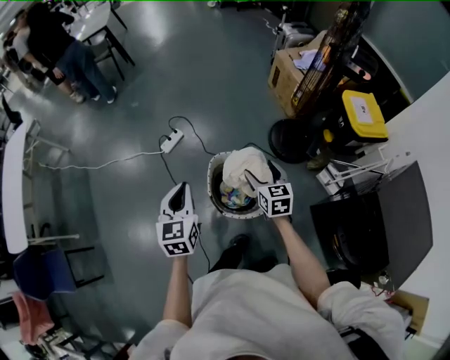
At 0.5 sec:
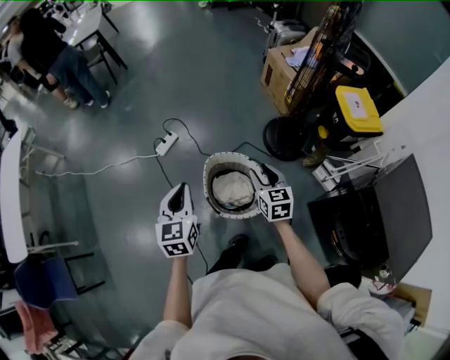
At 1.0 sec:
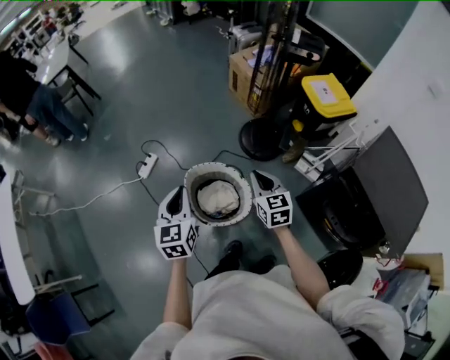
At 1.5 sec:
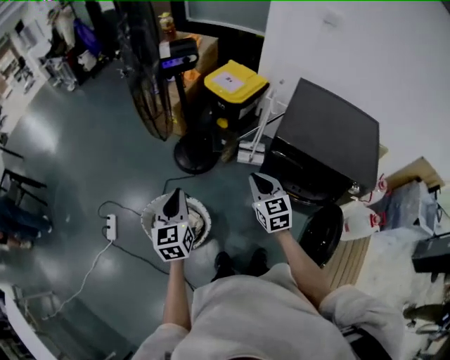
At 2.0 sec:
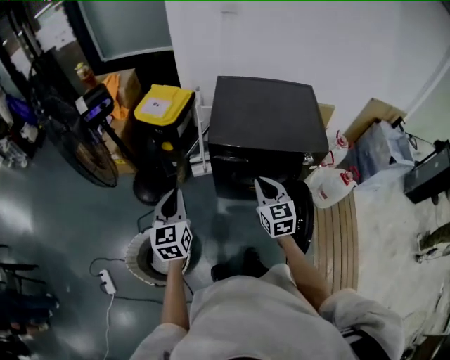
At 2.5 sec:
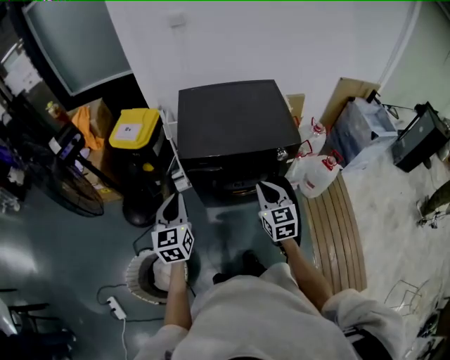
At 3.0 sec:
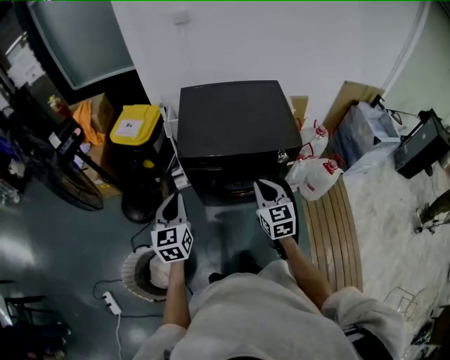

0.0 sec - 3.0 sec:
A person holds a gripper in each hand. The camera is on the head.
0.0 sec - 1.5 sec: The left gripper moves approximately 35 cm, and rotates roughly 40 degrees; the right gripper shifts by roughly 35 cm, turns by approximately 40 degrees, and closes.
1.5 sec - 3.0 sec: The right gripper changes place by some 35 cm, and changes its angle by some 30 degrees, while the left gripper moves some 30 cm, and turns by roughly 30 degrees.

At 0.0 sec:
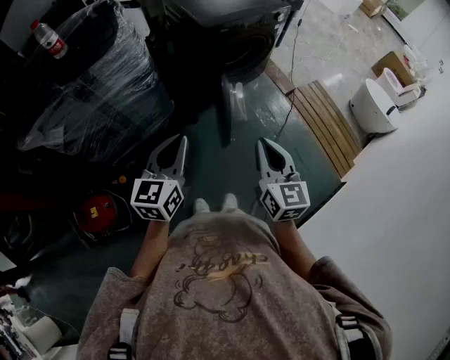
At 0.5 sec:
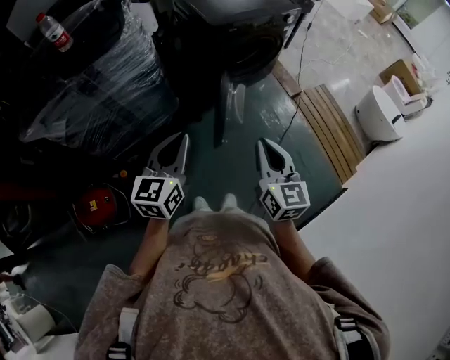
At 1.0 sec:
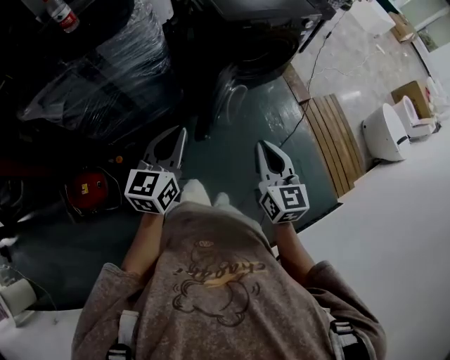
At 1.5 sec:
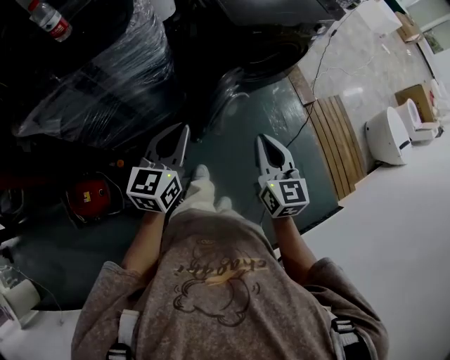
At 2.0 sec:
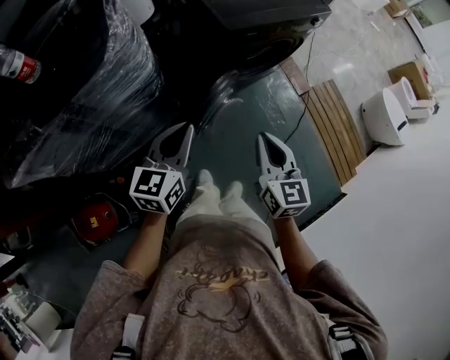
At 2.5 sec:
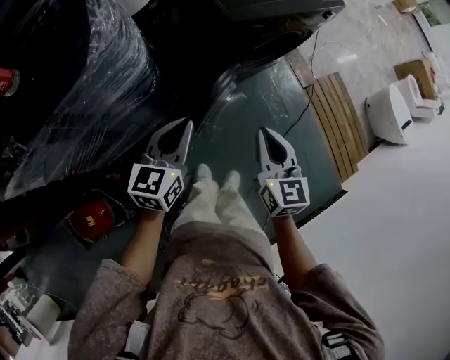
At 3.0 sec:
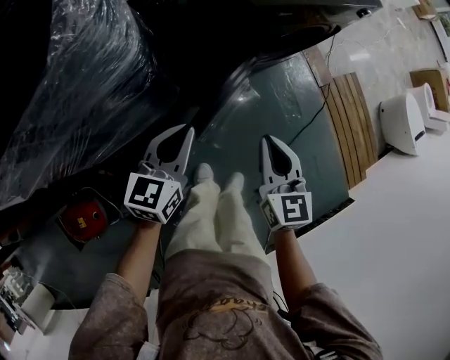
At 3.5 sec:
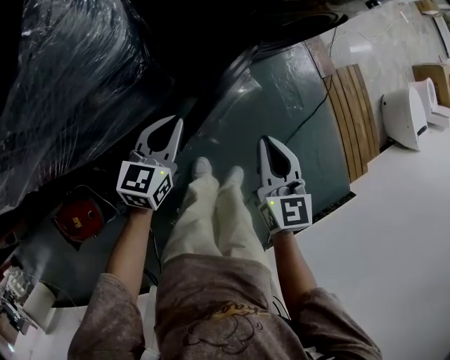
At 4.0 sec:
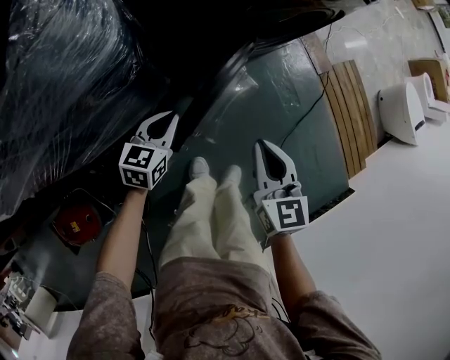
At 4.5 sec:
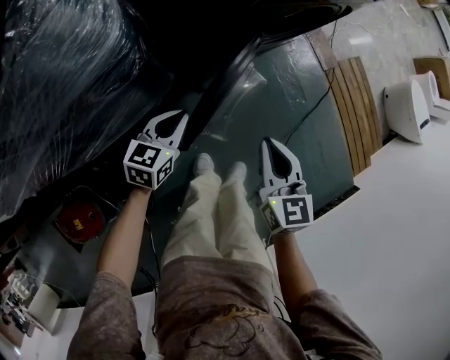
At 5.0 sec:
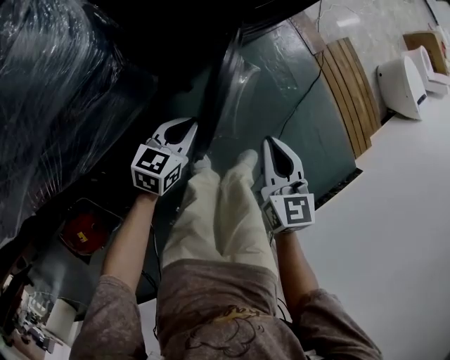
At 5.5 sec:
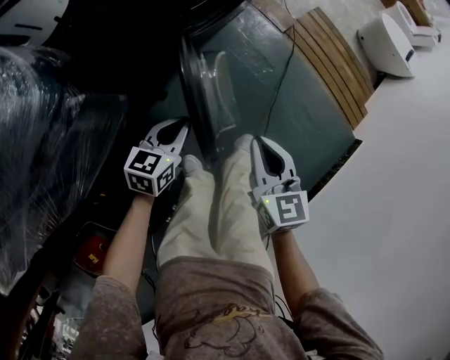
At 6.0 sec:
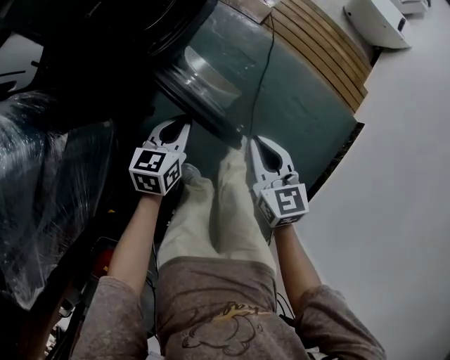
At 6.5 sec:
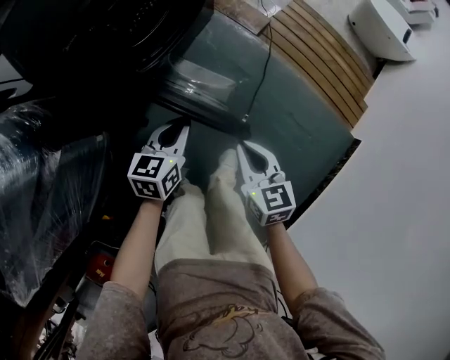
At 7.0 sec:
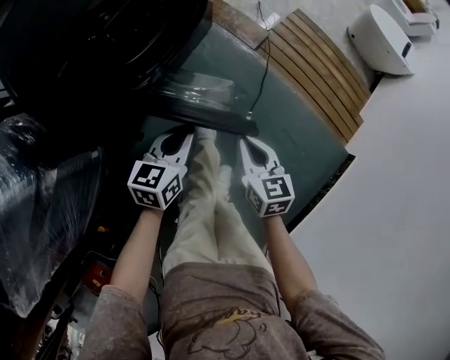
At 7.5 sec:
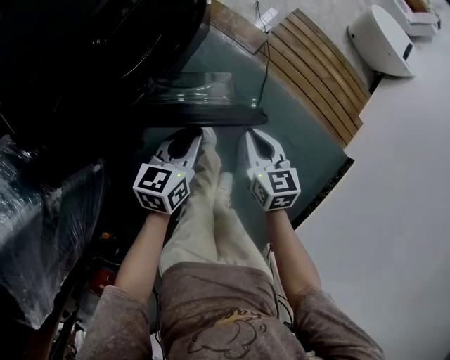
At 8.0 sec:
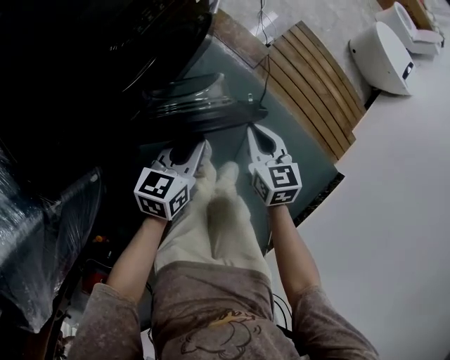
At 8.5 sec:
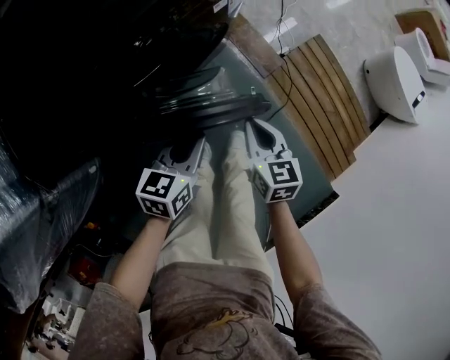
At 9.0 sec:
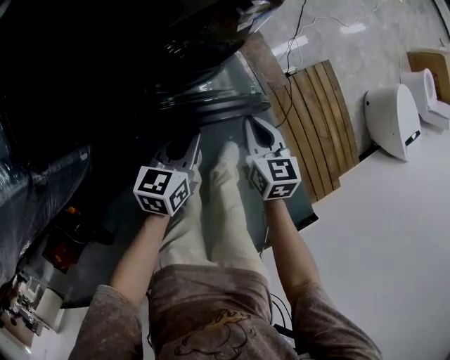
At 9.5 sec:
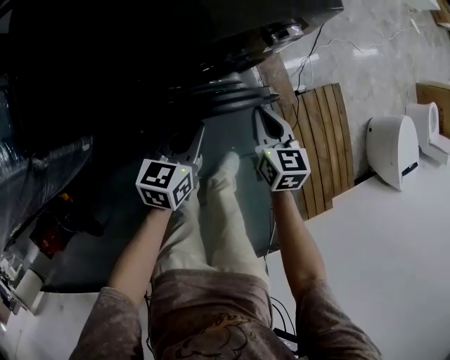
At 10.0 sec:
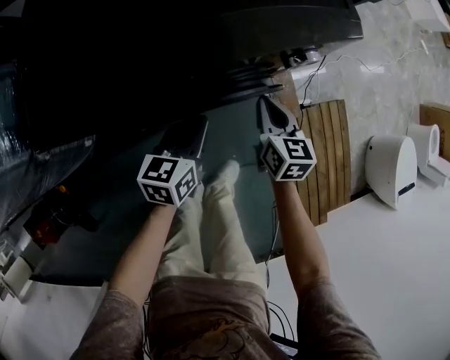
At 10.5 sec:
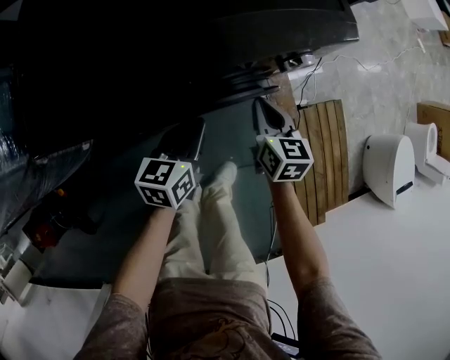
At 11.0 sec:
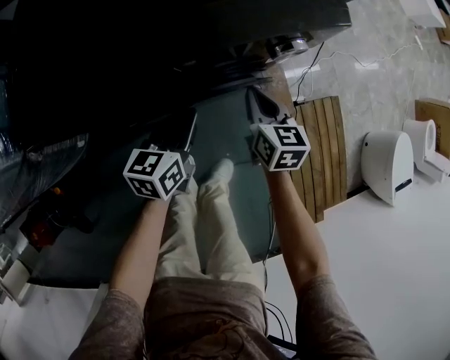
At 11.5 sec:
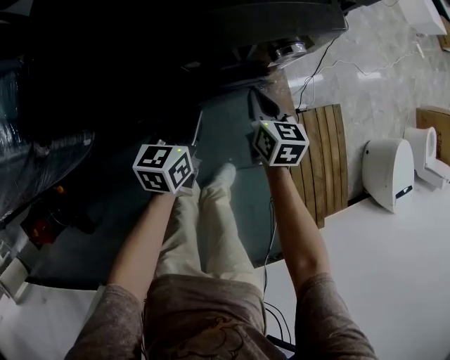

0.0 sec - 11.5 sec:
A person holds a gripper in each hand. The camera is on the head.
0.0 sec - 2.0 sec: Both grippers move forward, approximately 20 cm.
2.0 sec - 4.0 sec: The left gripper shifts roughly 30 cm downward. The right gripper shifts about 20 cm downward.
4.0 sec - 6.0 sec: Both grippers move to the right, about 25 cm. The right gripper rotates about 30 degrees. The left gripper swivels about 20 degrees.
6.0 sec - 7.5 sec: The right gripper shifts roughly 20 cm forward. Meanwhile the left gripper shifts about 20 cm forward and to the right.
7.5 sec - 9.5 sec: The left gripper moves some 20 cm, and rotates roughly 30 degrees; the right gripper shifts by about 30 cm, and swivels some 30 degrees.
9.5 sec - 11.5 sec: Both grippers travel together forward, some 5 cm.

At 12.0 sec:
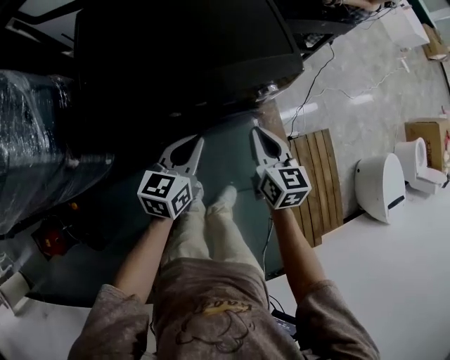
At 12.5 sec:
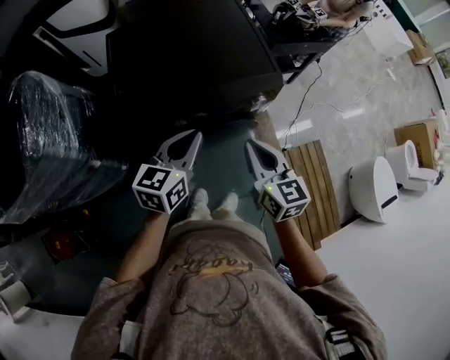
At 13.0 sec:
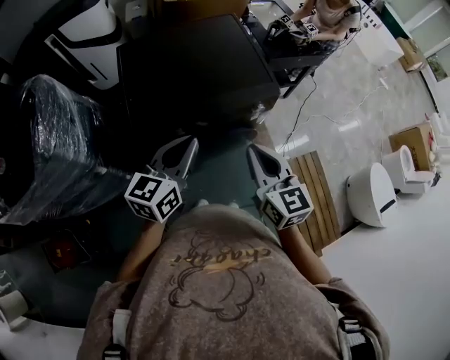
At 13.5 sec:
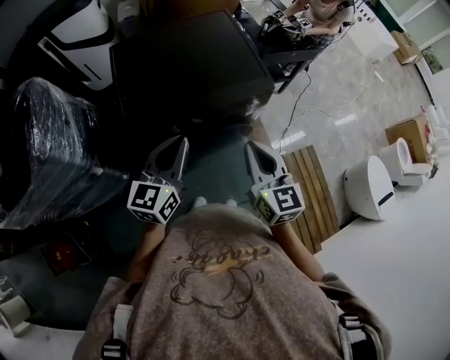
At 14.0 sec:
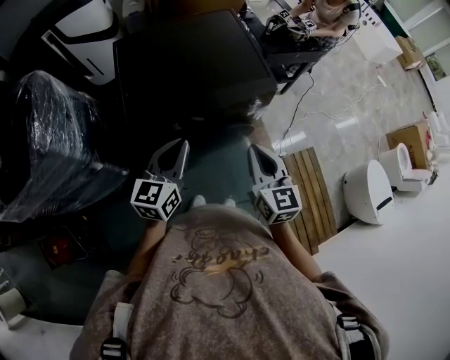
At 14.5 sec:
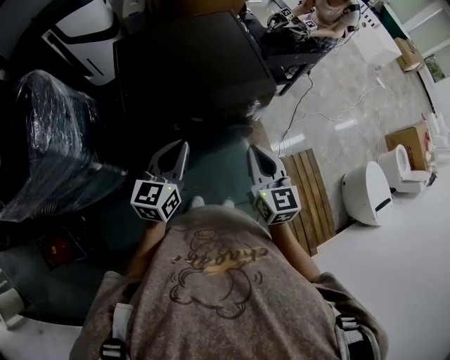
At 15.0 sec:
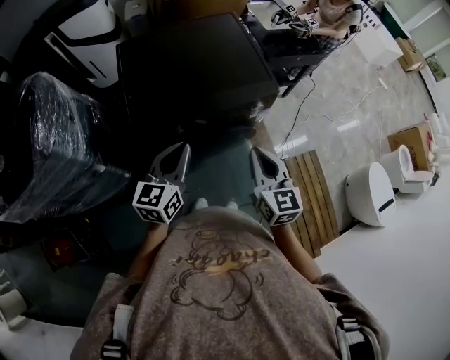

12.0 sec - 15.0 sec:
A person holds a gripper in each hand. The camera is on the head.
12.0 sec - 13.5 sec: The left gripper is displaced upward by some 20 cm, and changes its angle by roughly 20 degrees. Meanwhile the right gripper is displaced upward and backward by approximately 25 cm.
13.5 sec - 15.0 sec: The grippers move only a little.

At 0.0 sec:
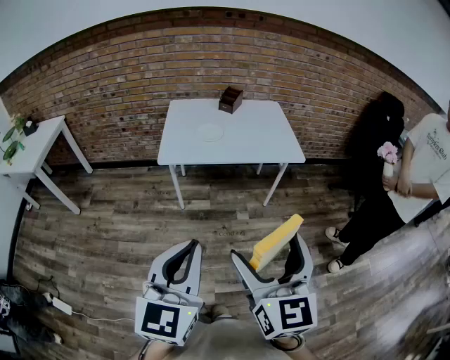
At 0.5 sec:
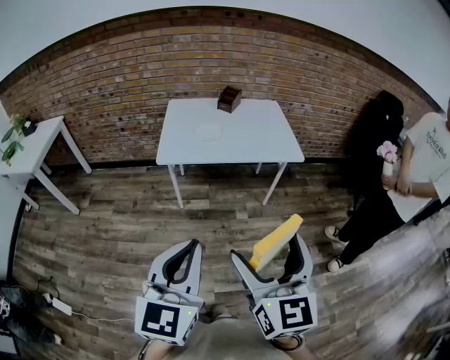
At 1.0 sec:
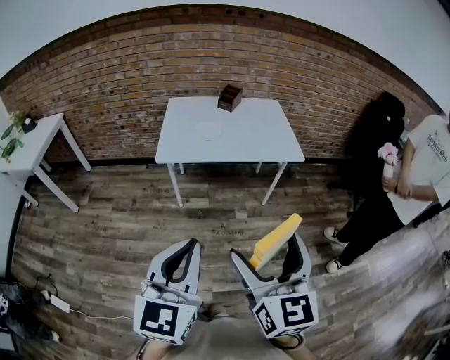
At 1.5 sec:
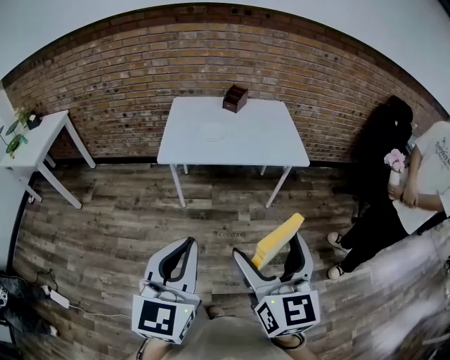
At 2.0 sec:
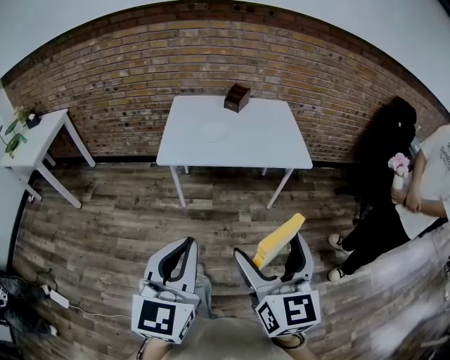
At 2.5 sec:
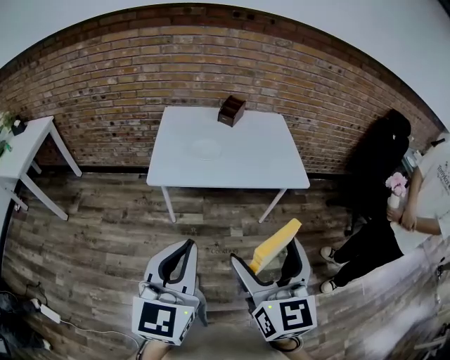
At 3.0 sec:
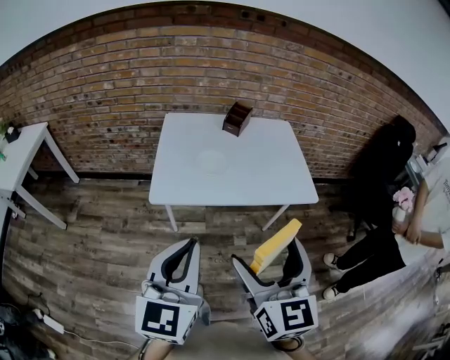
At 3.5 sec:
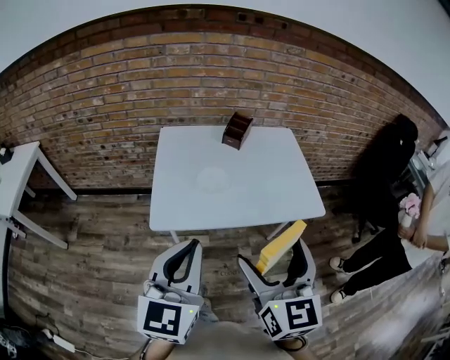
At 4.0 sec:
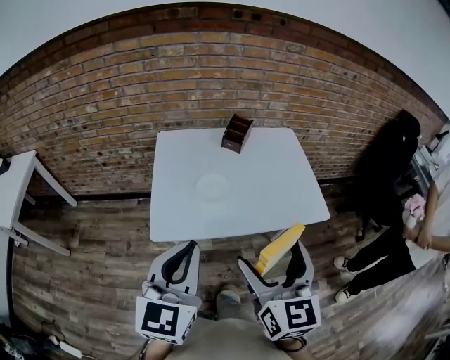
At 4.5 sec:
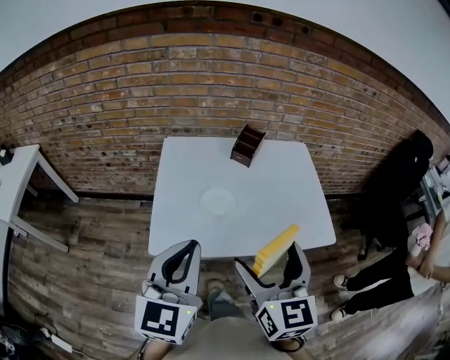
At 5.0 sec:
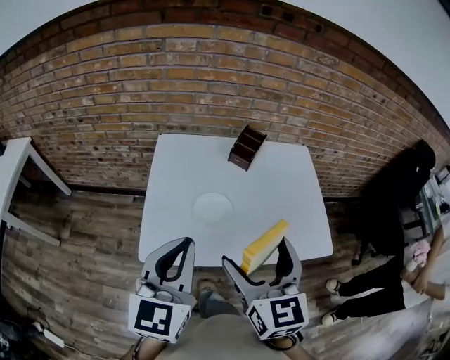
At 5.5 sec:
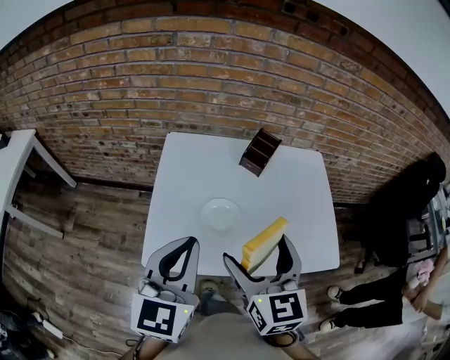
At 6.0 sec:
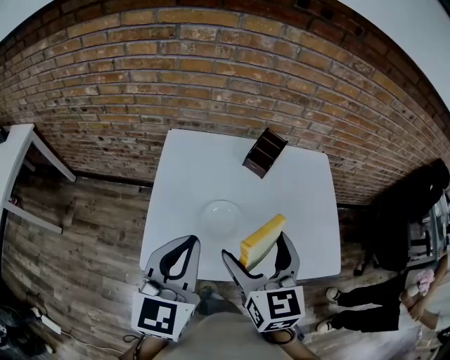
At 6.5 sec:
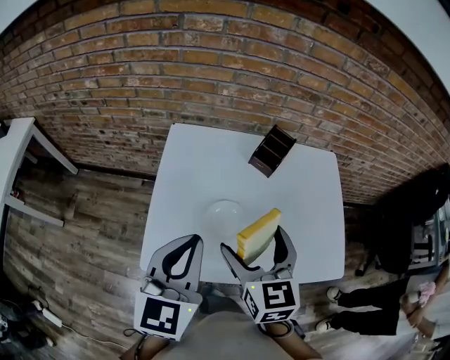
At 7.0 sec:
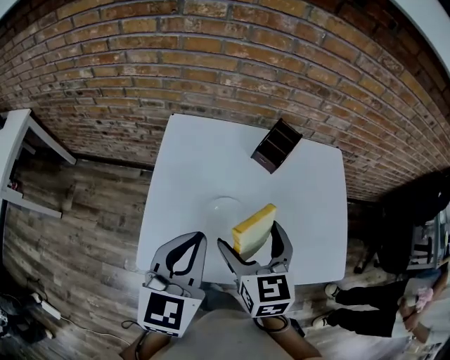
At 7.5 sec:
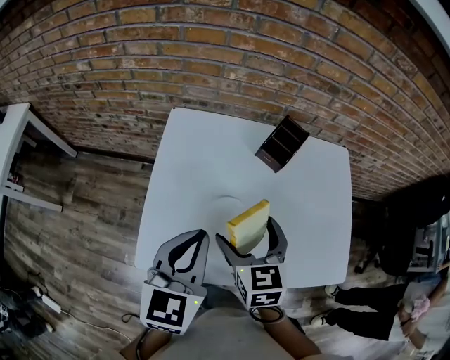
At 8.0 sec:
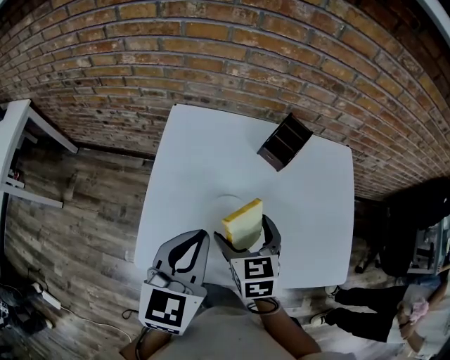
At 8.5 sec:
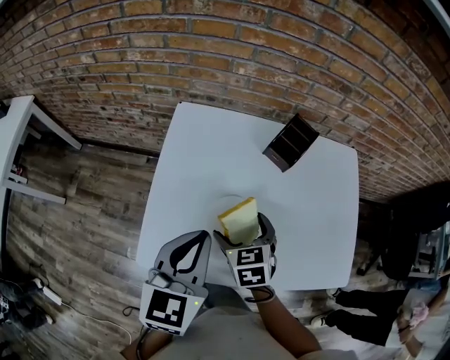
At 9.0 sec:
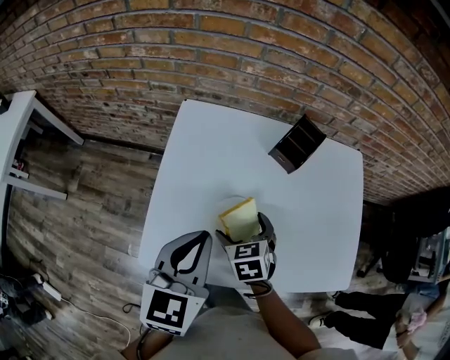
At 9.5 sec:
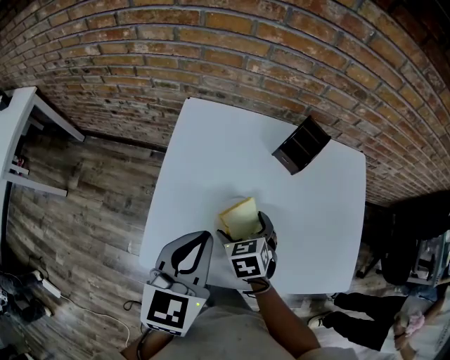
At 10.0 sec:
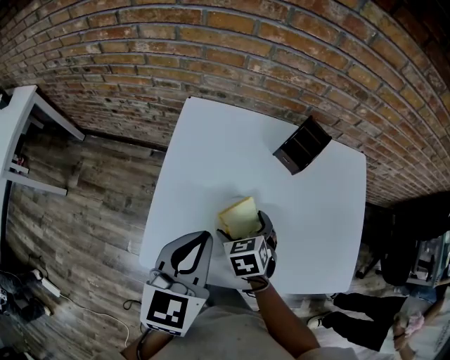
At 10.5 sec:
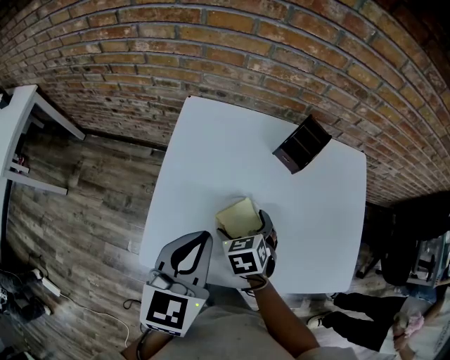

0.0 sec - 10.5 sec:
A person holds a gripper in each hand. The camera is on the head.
0.0 sec - 2.0 sec: Both grippers travel together forward, some 5 cm.
2.0 sec - 4.0 sec: The two grippers go approximately 35 cm forward.
4.0 sec - 6.5 sec: The two grippers go roughly 25 cm forward. The right gripper rotates about 20 degrees.
6.5 sec - 8.5 sec: The left gripper is displaced downward by roughly 5 cm; the right gripper moves downward, about 15 cm, and changes its angle by about 30 degrees.
8.5 sec - 10.5 sec: The right gripper travels downward by about 5 cm.
